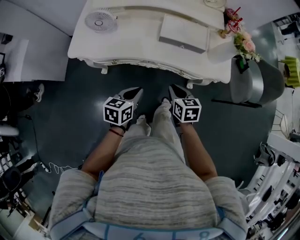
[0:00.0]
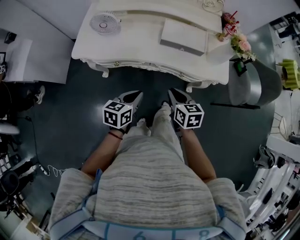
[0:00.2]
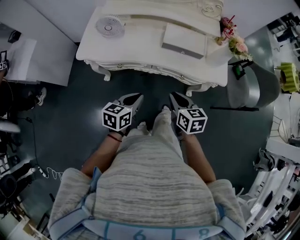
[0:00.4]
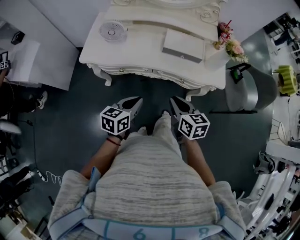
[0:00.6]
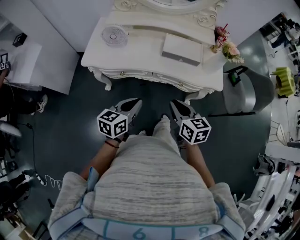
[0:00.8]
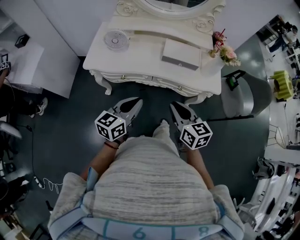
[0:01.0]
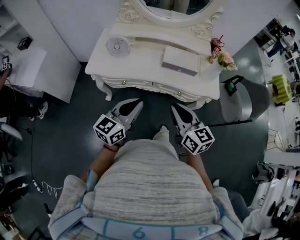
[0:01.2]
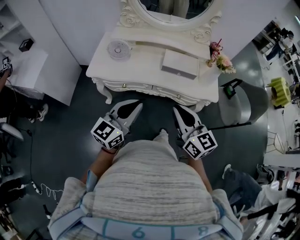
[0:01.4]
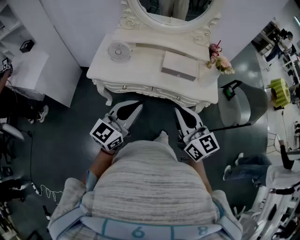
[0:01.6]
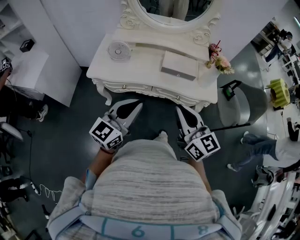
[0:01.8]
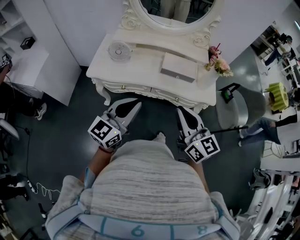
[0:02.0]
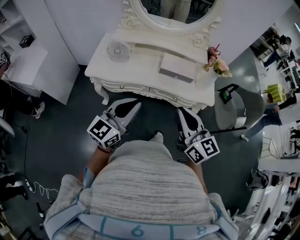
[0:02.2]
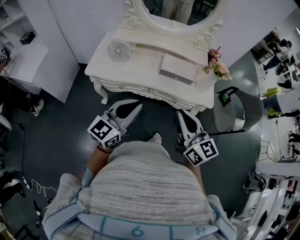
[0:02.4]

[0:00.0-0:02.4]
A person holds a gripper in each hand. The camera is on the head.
0:00.0 to 0:01.2: The right gripper heads upward and backward, covering some 25 cm, and angles its fingers upward, by roughly 30 degrees. Meanwhile the left gripper is displaced upward by some 20 cm, and points its fingers approximately 30 degrees further upward.
0:01.2 to 0:02.4: Both grippers travel together upward, some 5 cm.

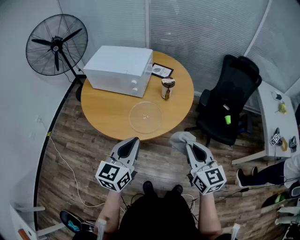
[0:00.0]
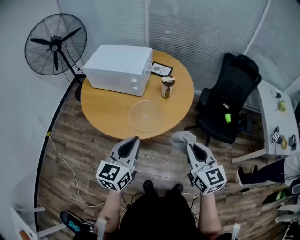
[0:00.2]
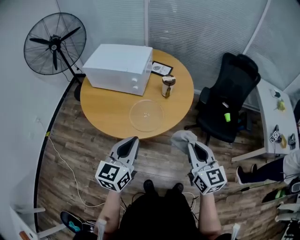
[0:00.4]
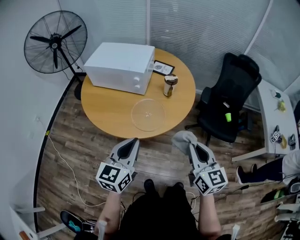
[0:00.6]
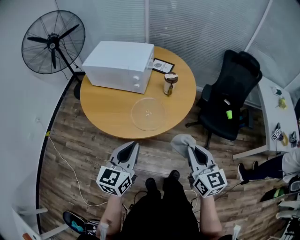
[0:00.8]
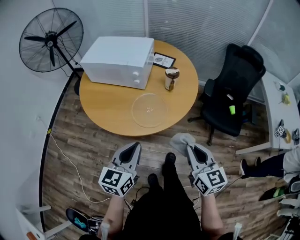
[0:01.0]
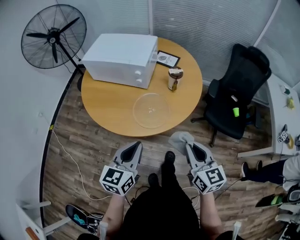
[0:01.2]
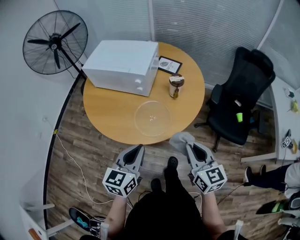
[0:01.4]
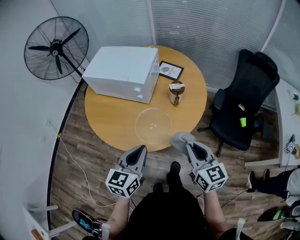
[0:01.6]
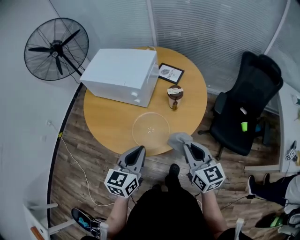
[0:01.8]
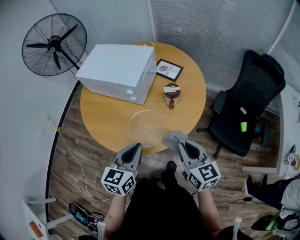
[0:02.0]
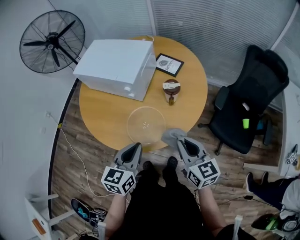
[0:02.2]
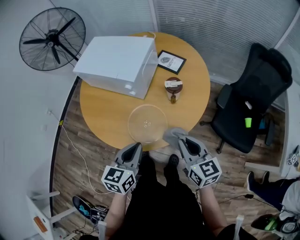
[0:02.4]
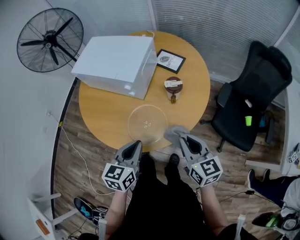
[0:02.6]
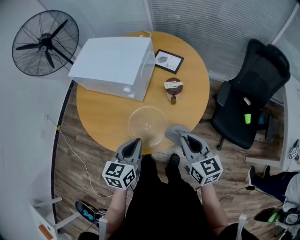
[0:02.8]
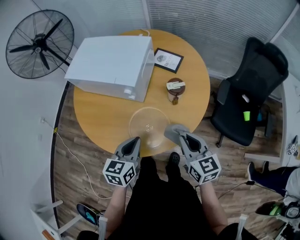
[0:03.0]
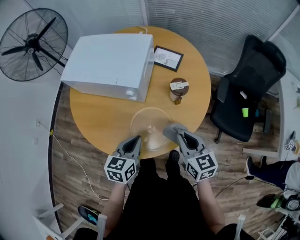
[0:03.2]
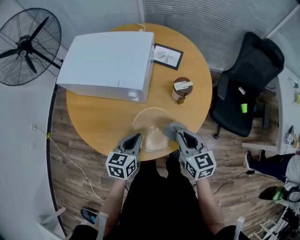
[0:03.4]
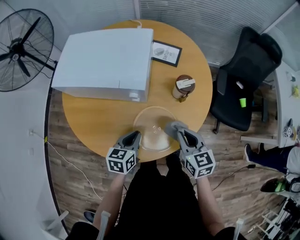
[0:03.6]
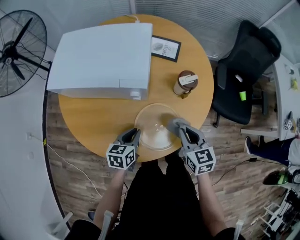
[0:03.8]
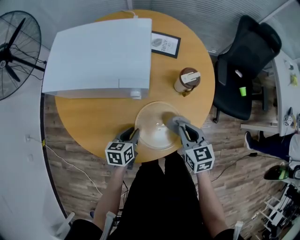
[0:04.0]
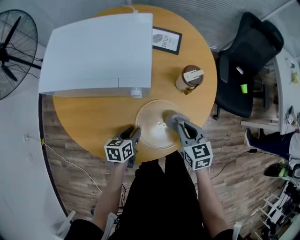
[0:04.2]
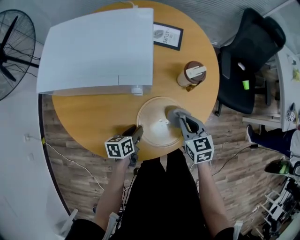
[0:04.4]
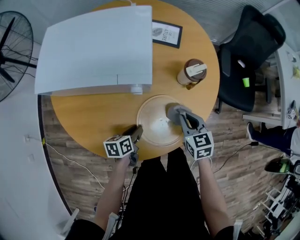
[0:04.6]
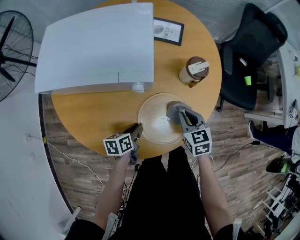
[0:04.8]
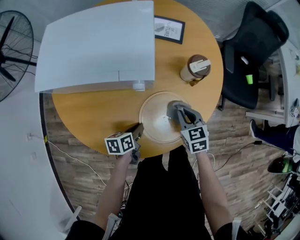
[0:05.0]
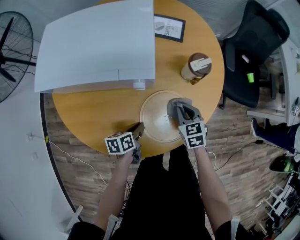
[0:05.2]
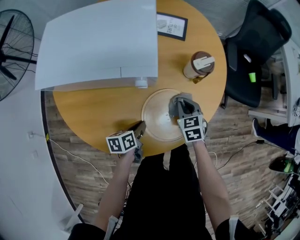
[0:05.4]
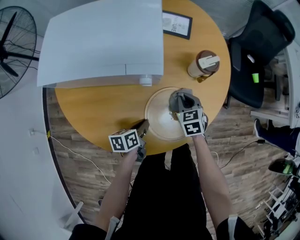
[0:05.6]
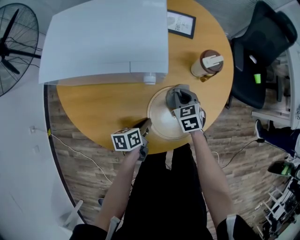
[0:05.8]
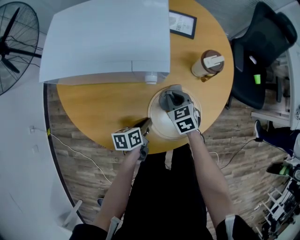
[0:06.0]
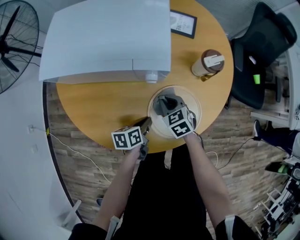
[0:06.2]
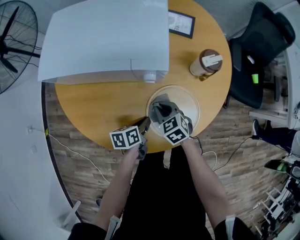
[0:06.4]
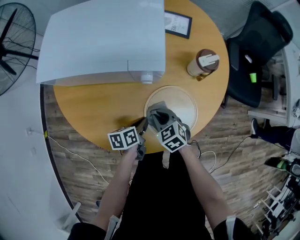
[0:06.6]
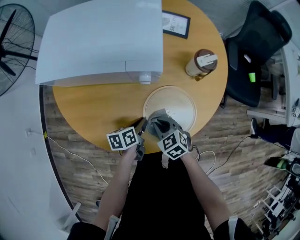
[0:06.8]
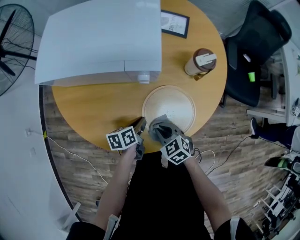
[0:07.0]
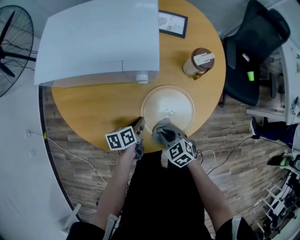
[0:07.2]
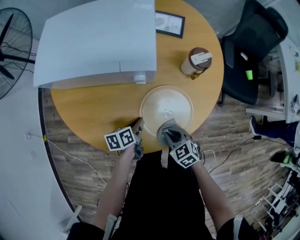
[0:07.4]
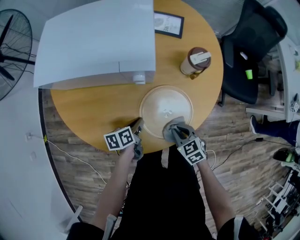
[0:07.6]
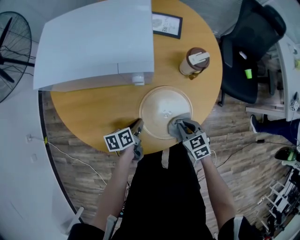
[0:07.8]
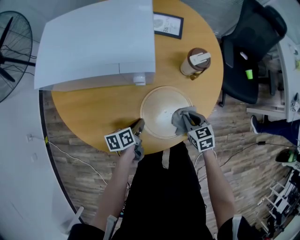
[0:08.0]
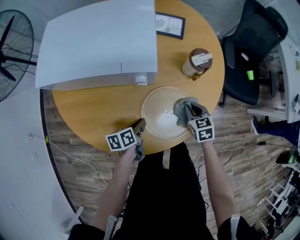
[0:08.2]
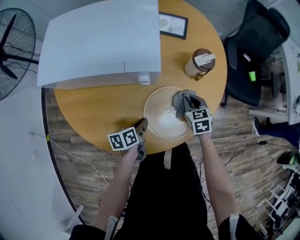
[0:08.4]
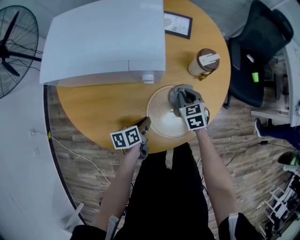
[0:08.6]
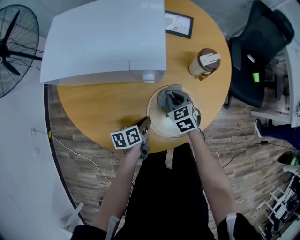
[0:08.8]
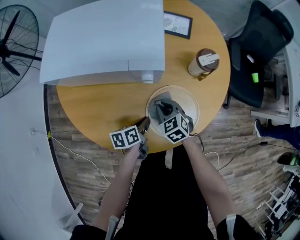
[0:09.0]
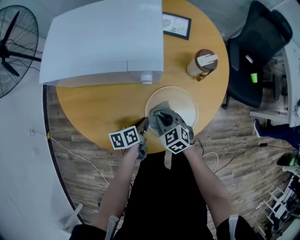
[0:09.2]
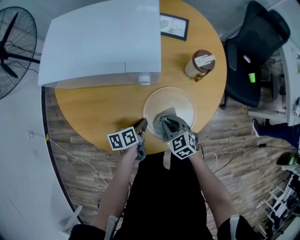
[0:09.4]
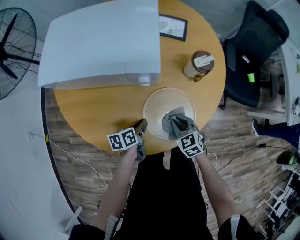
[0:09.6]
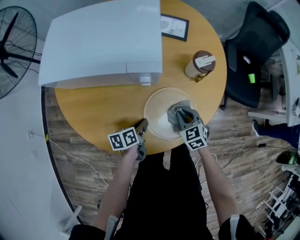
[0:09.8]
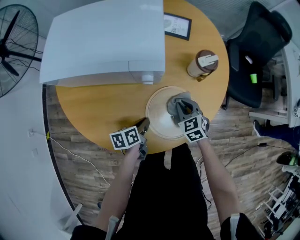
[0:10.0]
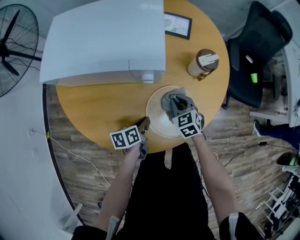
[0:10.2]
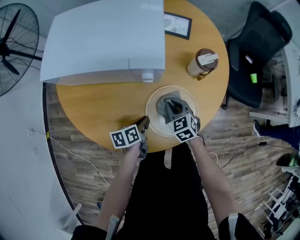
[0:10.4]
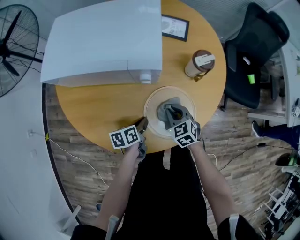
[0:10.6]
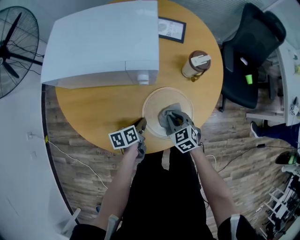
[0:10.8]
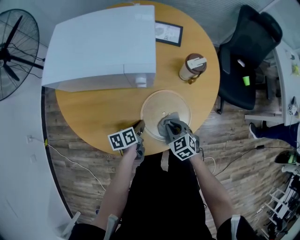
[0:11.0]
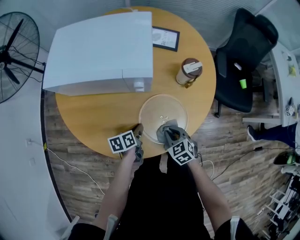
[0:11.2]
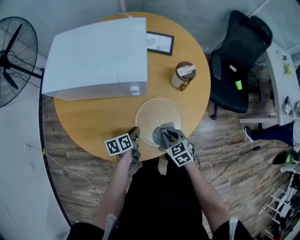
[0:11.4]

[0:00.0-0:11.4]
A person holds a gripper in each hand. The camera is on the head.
0:00.0 to 0:01.4: The right gripper shifts approximately 10 cm forward and downward. Meanwhile the left gripper goes about 5 cm downward.
0:01.4 to 0:02.8: The right gripper heads forward, covering some 15 cm. The left gripper goes some 15 cm forward and downward.
0:02.8 to 0:04.2: The left gripper heads downward and to the left, covering some 25 cm, swivels about 30 degrees, and opens its fingers; the right gripper shifts approximately 20 cm downward, to the left and forward, and changes its angle by about 30 degrees.
0:04.2 to 0:05.6: The right gripper shifts approximately 10 cm downward and forward.
0:05.6 to 0:07.2: The right gripper shifts about 20 cm backward and to the left, and swivels some 30 degrees.
0:07.2 to 0:08.6: The right gripper is displaced forward by some 20 cm, and changes its angle by approximately 30 degrees.
0:08.6 to 0:10.0: The right gripper goes backward and returns, approximately 15 cm each way.
0:10.0 to 0:11.4: The right gripper shifts some 10 cm backward.

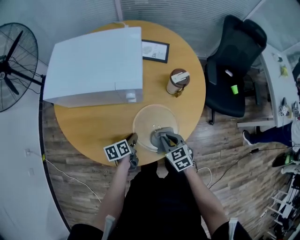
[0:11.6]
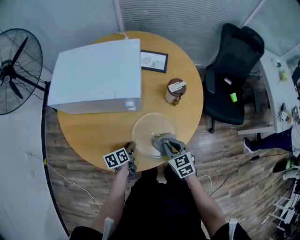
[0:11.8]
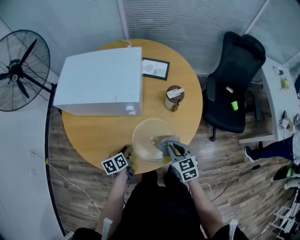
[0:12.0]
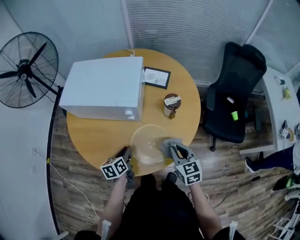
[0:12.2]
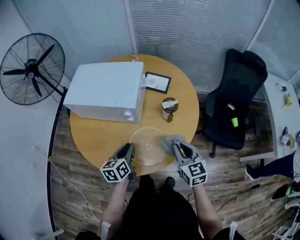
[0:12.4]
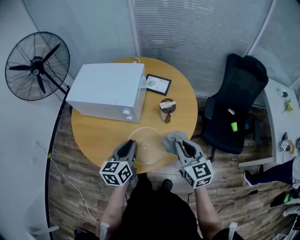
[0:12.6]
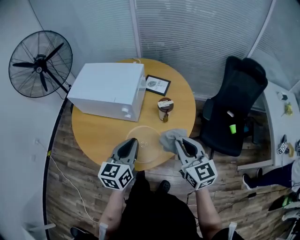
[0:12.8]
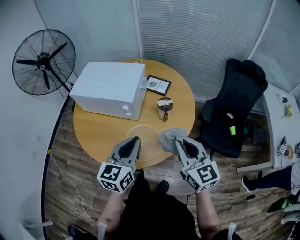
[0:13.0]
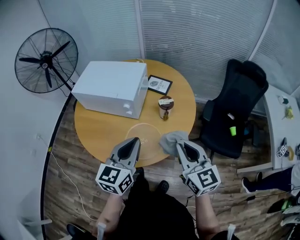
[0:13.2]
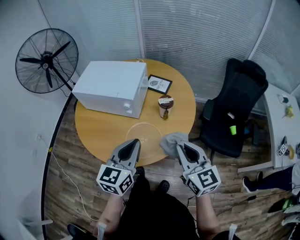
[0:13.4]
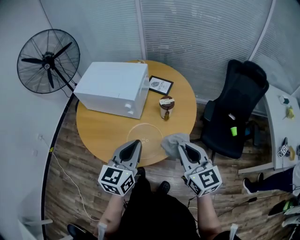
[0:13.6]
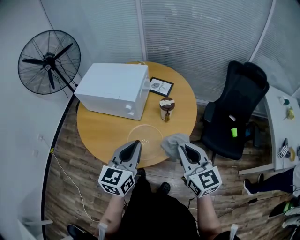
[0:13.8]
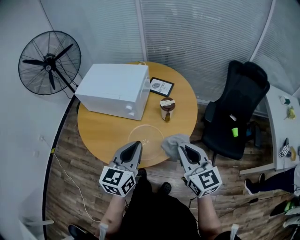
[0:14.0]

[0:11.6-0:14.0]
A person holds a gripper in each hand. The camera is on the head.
0:11.6 to 0:12.8: The right gripper goes approximately 30 cm upward and to the right, and points its fingers about 40 degrees further upward; the left gripper travels upward by some 35 cm, and changes its angle by approximately 50 degrees.
0:12.8 to 0:14.0: The two grippers go some 5 cm backward.

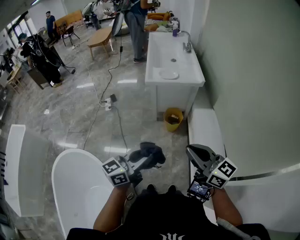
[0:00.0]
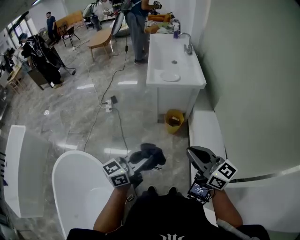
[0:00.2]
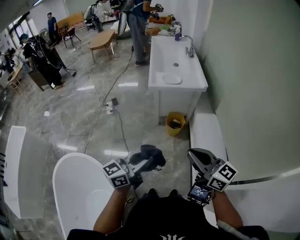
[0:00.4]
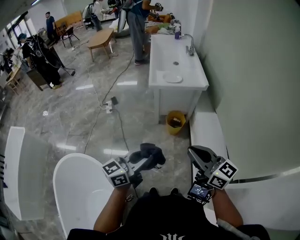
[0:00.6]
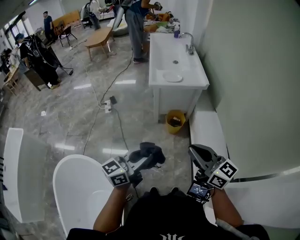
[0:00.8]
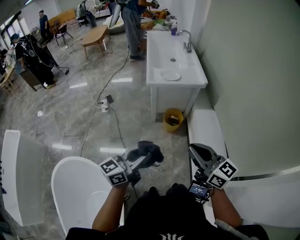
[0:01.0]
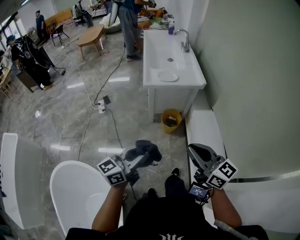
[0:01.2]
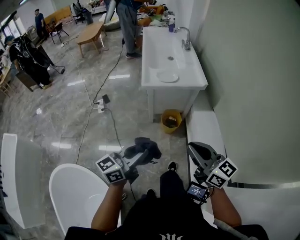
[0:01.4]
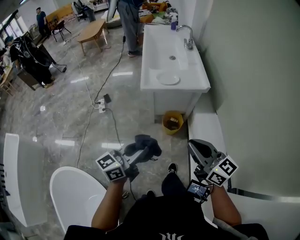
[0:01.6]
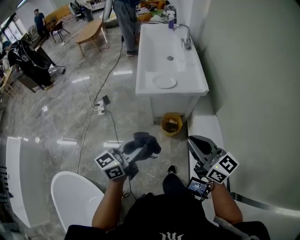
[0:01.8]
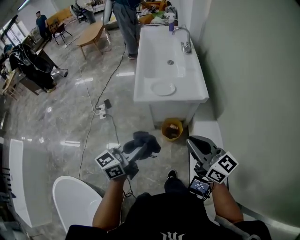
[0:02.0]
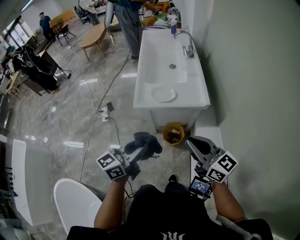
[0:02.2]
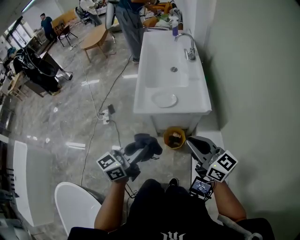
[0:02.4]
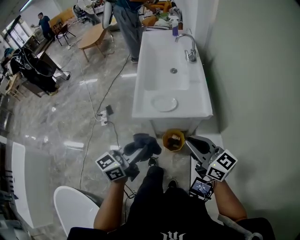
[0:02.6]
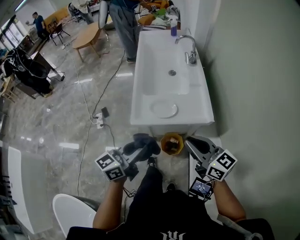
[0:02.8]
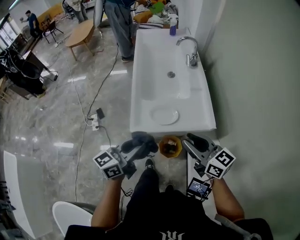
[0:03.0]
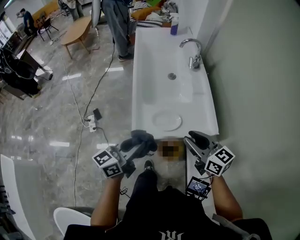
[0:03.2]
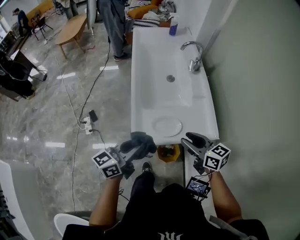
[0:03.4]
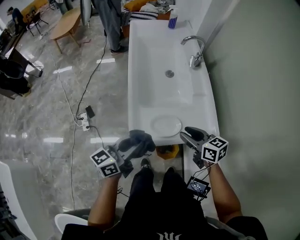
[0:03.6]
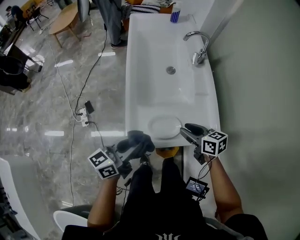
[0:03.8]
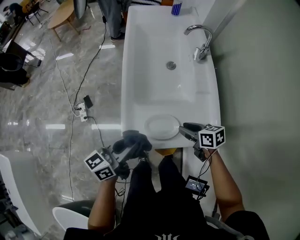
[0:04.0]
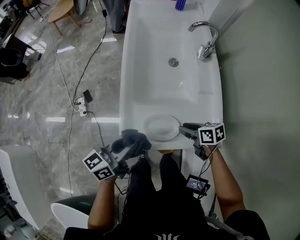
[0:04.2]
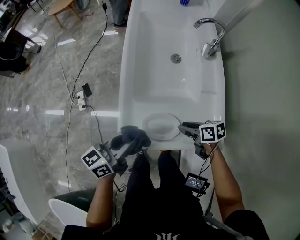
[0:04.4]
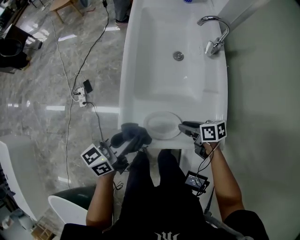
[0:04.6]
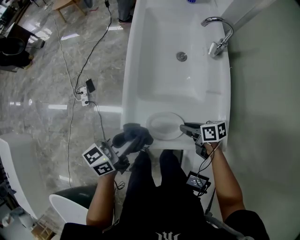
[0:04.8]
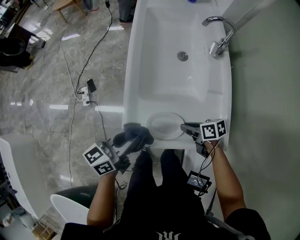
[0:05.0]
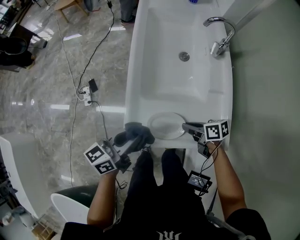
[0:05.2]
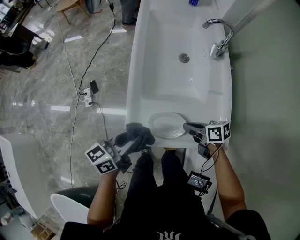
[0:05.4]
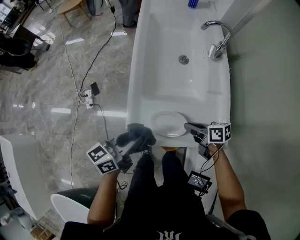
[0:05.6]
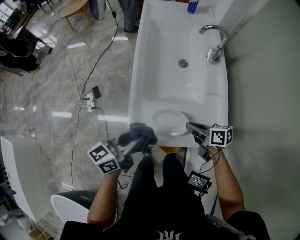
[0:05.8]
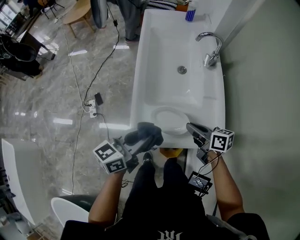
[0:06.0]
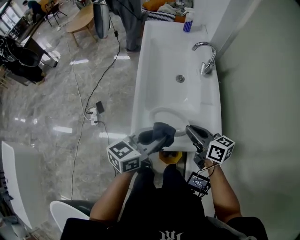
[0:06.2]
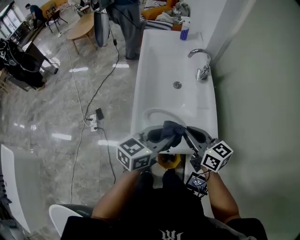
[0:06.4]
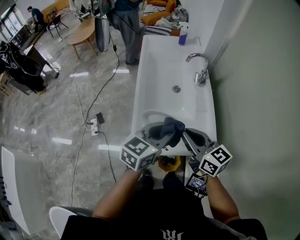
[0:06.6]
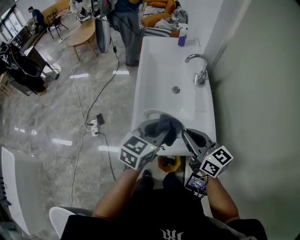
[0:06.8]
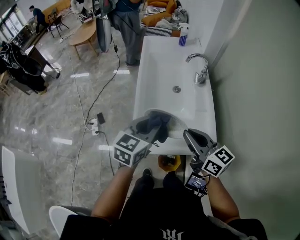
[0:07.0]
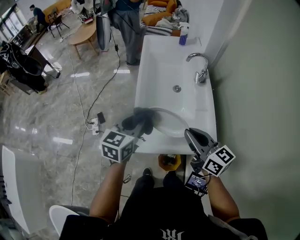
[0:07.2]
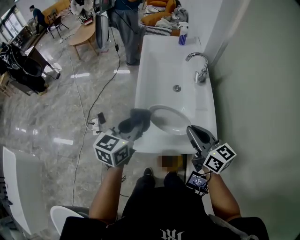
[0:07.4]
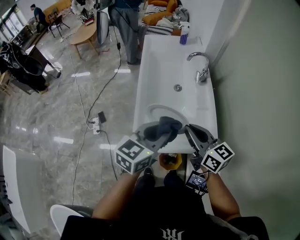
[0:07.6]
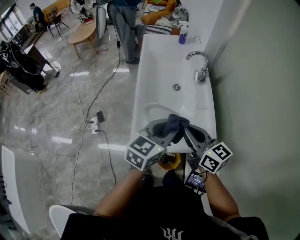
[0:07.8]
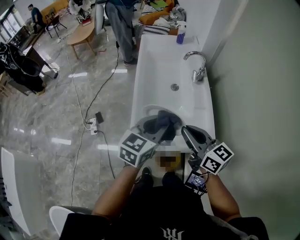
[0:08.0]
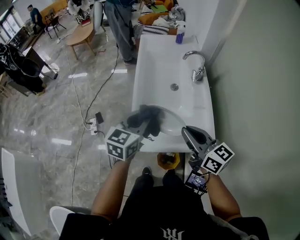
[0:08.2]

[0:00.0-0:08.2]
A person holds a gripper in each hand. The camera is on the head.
0:00.0 to 0:01.6: Both grippers travel together forward, approximately 20 cm.
0:01.6 to 0:03.2: Both grippers are carried forward, about 50 cm. The right gripper opens.
0:03.2 to 0:05.0: The left gripper is displaced forward and downward by some 20 cm, while the right gripper heads downward and forward, covering approximately 30 cm, and rotates approximately 50 degrees.
0:05.0 to 0:06.6: The left gripper goes approximately 20 cm upward and to the right, and swivels some 30 degrees, while the right gripper moves upward, approximately 30 cm, and tilts its fingers roughly 30 degrees upward.
0:06.6 to 0:08.2: The left gripper moves left and right over roughly 15 cm, changing direction 2 times.
